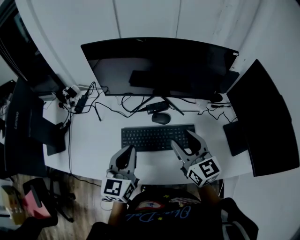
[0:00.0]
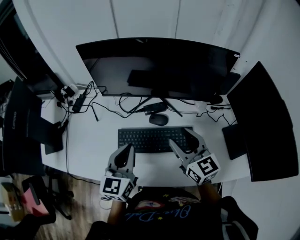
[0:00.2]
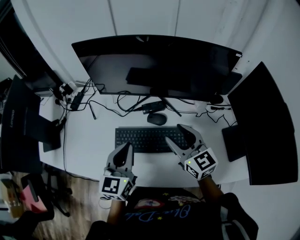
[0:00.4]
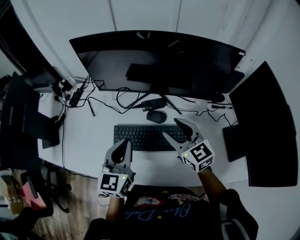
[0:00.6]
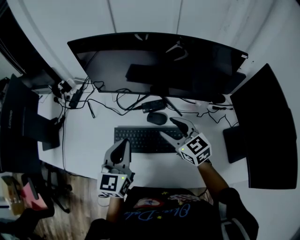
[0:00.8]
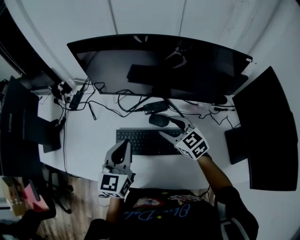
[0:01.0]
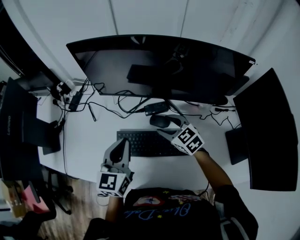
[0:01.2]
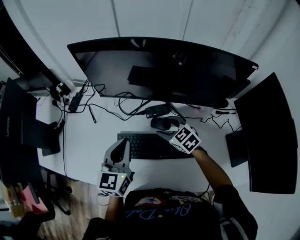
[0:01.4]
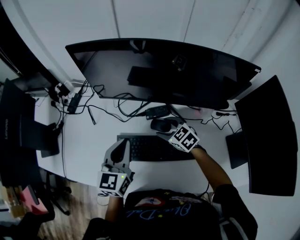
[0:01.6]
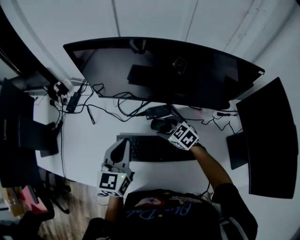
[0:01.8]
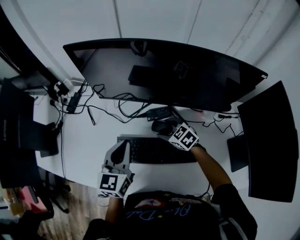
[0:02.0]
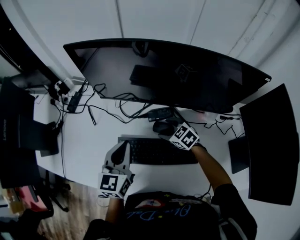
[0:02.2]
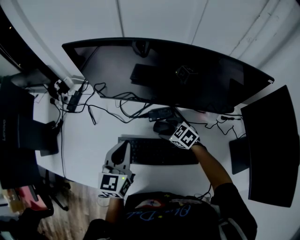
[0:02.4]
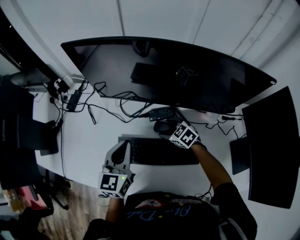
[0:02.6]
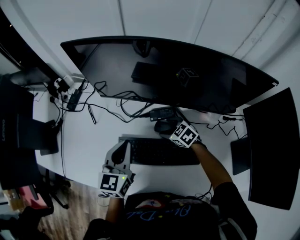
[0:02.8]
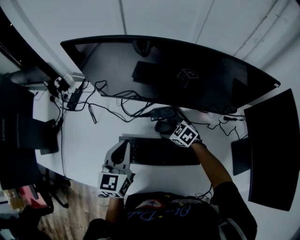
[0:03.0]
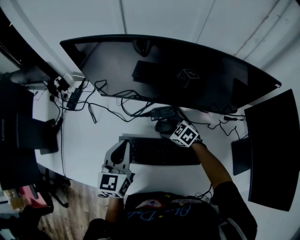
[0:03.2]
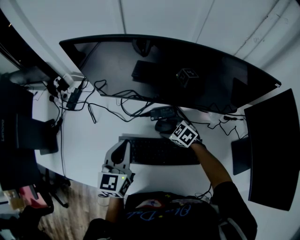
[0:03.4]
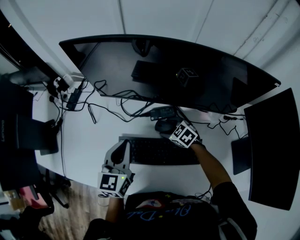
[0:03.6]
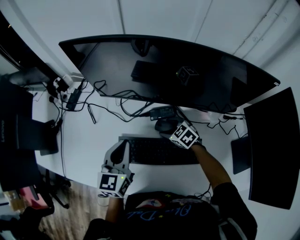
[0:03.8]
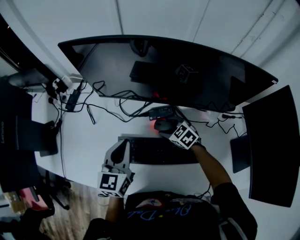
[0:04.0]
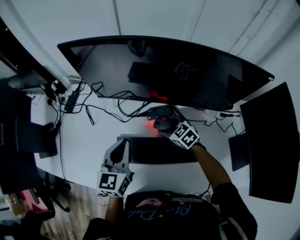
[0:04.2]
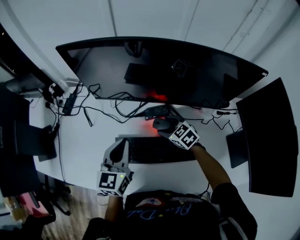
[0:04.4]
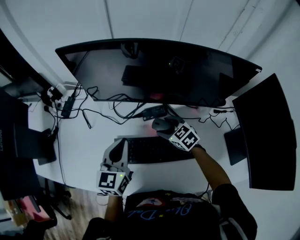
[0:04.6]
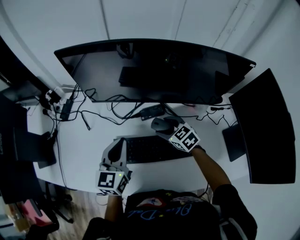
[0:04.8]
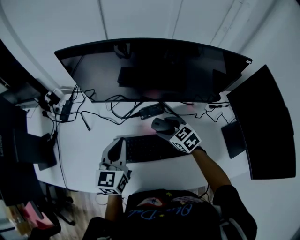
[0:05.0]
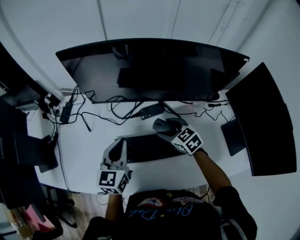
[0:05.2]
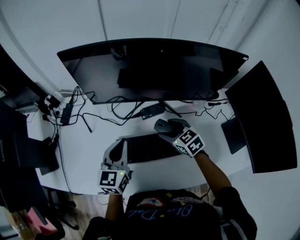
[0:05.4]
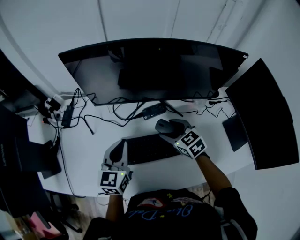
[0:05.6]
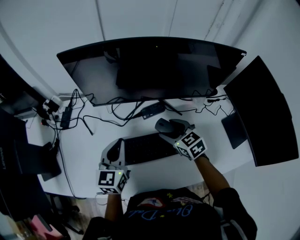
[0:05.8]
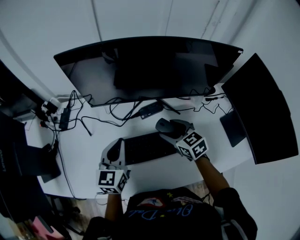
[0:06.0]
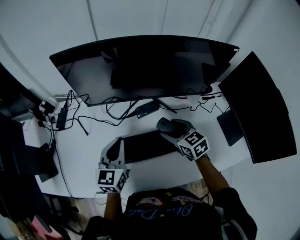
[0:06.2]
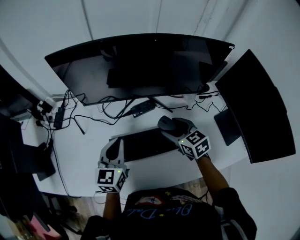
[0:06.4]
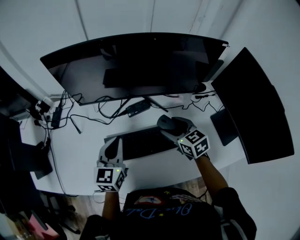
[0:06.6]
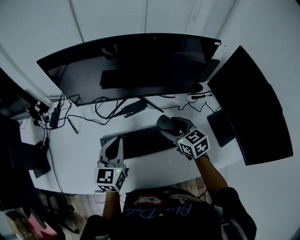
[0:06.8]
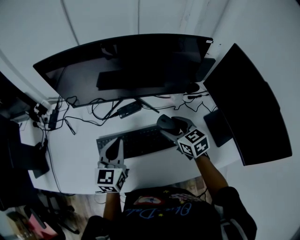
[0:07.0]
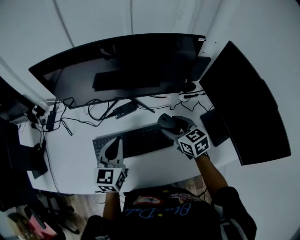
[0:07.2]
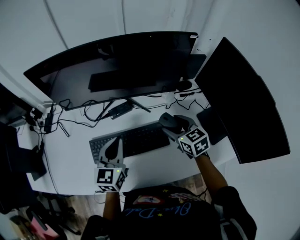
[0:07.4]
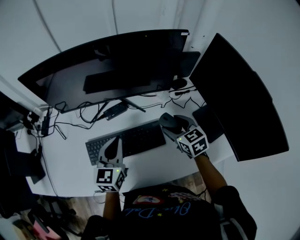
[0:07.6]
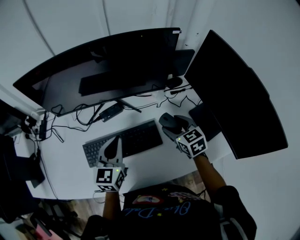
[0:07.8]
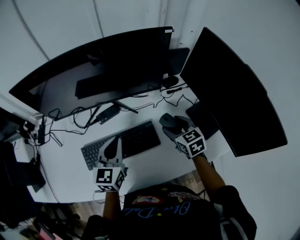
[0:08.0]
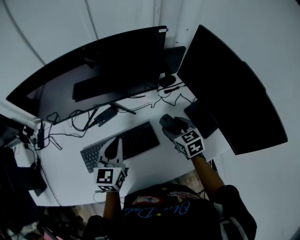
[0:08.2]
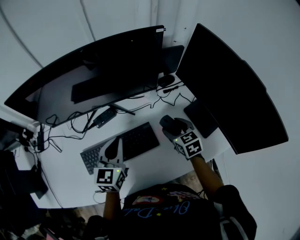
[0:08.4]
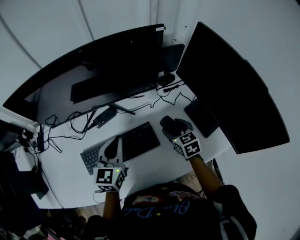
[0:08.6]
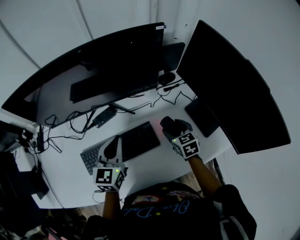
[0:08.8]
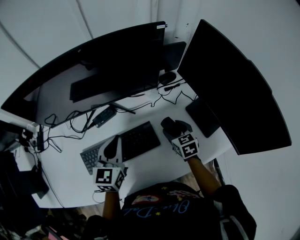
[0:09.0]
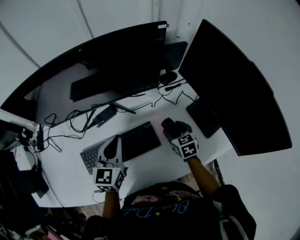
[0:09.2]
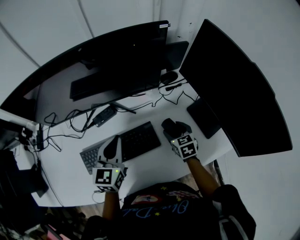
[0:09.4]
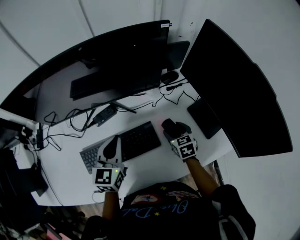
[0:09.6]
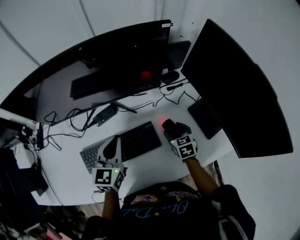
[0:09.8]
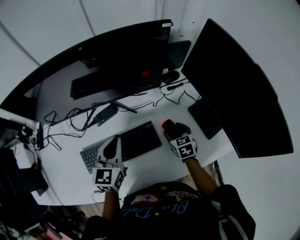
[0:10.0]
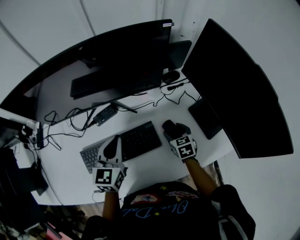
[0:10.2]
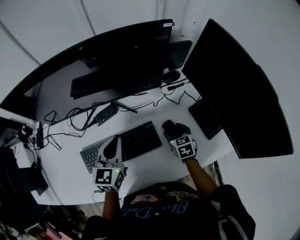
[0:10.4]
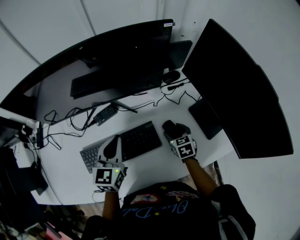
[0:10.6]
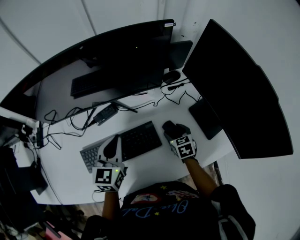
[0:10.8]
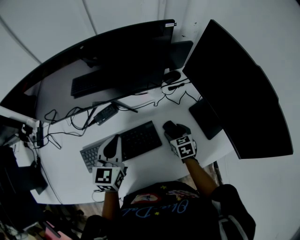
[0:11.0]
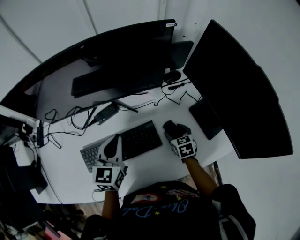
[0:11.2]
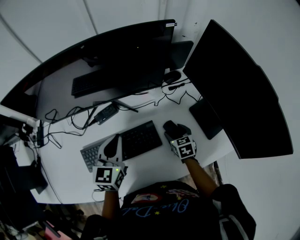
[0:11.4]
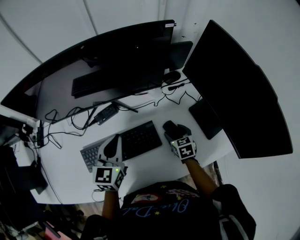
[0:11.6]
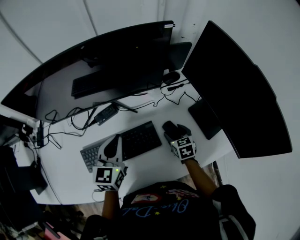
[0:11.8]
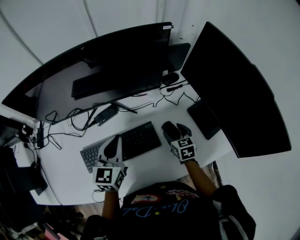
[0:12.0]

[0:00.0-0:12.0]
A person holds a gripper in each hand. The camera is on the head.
0:00.0 to 0:01.6: The left gripper shifts some 10 cm forward. Meanwhile the right gripper goes about 25 cm downward and forward, and points its fingers roughly 30 degrees further downward.
0:01.6 to 0:03.0: The right gripper shifts some 10 cm downward.
0:03.0 to 0:04.4: The right gripper changes place by roughly 5 cm.
0:04.4 to 0:06.0: The right gripper travels upward and backward by roughly 10 cm, and swivels some 20 degrees.
0:06.0 to 0:07.6: Both grippers move to the right, approximately 20 cm.
0:07.6 to 0:09.0: The right gripper shifts about 10 cm downward and to the right. Meanwhile the left gripper moves about 5 cm.
0:09.0 to 0:12.0: The grippers stay close to where they were, moving slightly.

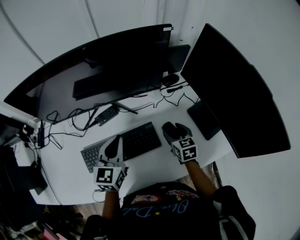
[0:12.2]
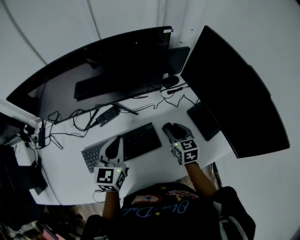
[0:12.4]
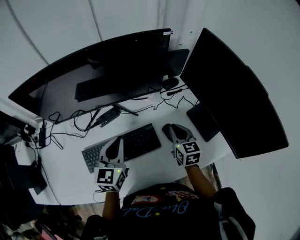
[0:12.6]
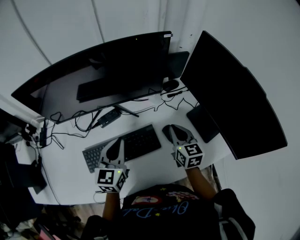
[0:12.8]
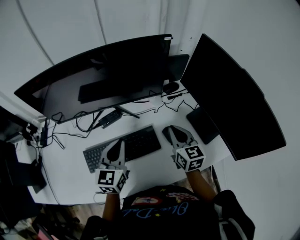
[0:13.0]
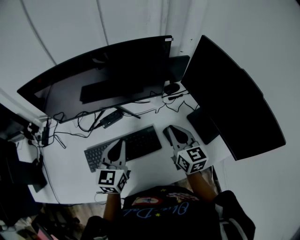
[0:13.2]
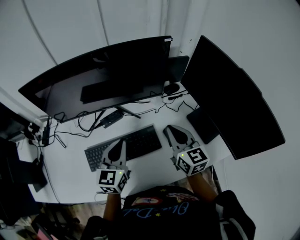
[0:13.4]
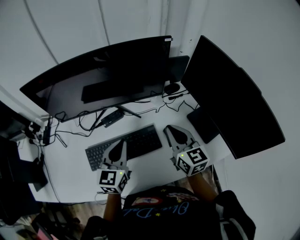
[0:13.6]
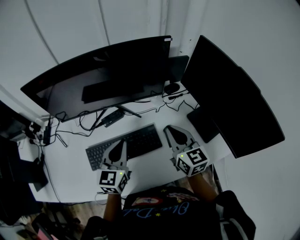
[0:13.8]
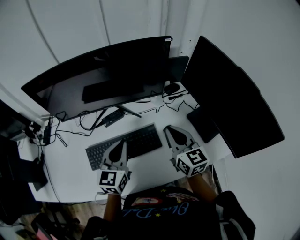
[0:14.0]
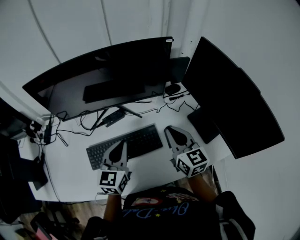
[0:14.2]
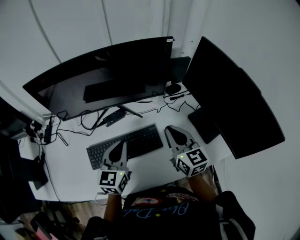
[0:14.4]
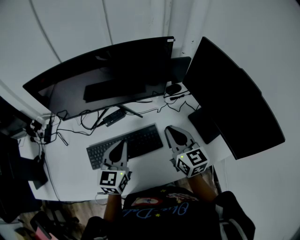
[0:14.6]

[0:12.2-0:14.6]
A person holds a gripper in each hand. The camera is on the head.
0:12.2 to 0:13.4: The right gripper heads upward, covering about 20 cm, turns by approximately 30 degrees, and closes its fingers.
0:13.4 to 0:14.6: The grippers make only small movements.

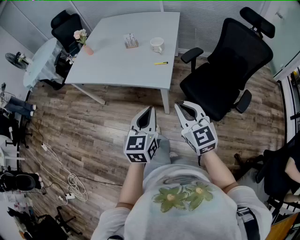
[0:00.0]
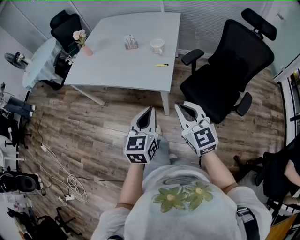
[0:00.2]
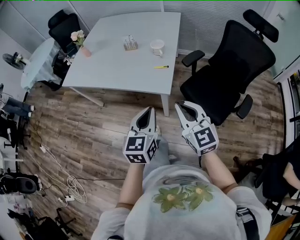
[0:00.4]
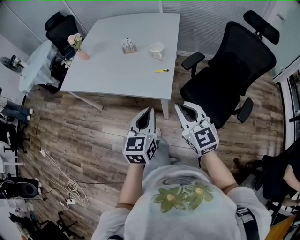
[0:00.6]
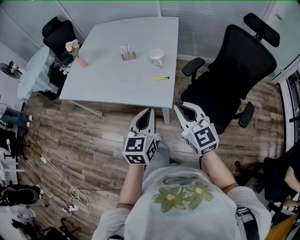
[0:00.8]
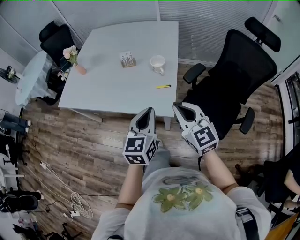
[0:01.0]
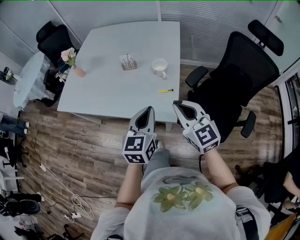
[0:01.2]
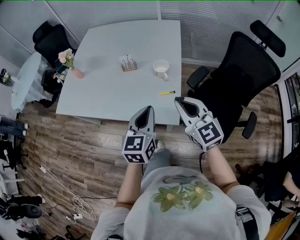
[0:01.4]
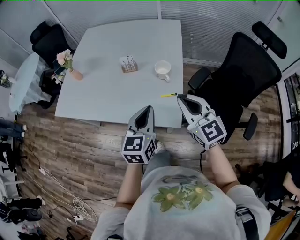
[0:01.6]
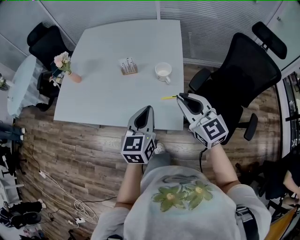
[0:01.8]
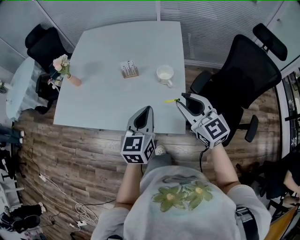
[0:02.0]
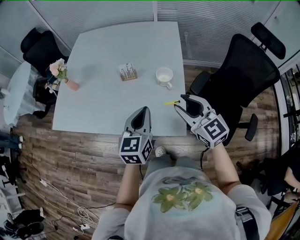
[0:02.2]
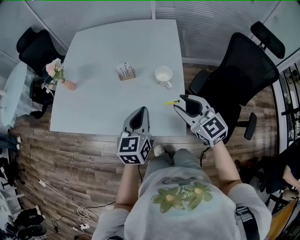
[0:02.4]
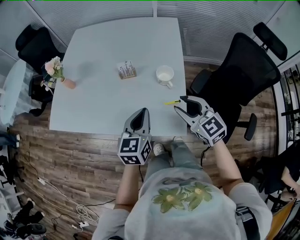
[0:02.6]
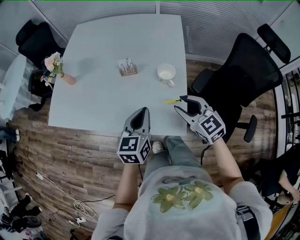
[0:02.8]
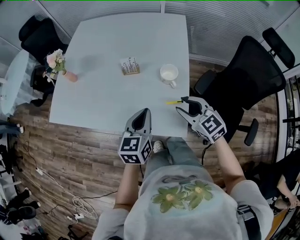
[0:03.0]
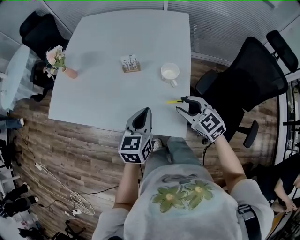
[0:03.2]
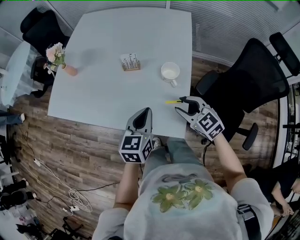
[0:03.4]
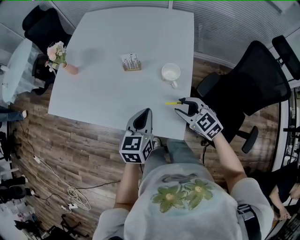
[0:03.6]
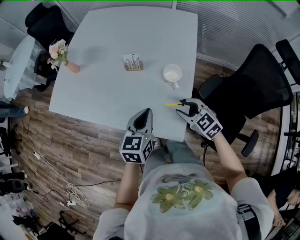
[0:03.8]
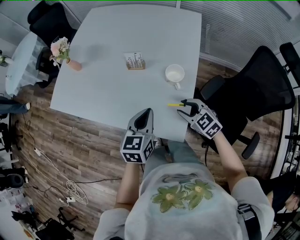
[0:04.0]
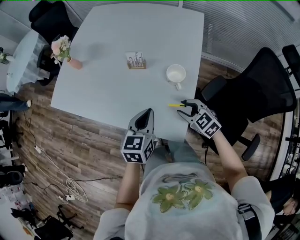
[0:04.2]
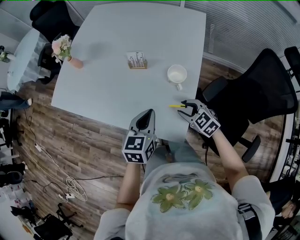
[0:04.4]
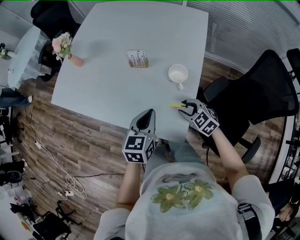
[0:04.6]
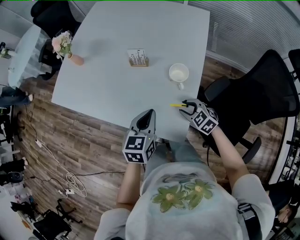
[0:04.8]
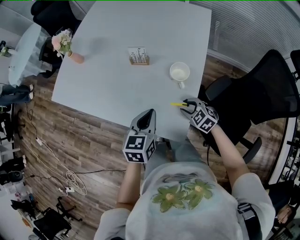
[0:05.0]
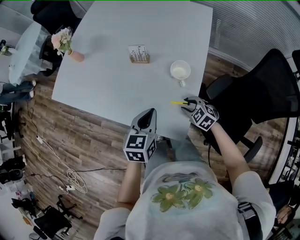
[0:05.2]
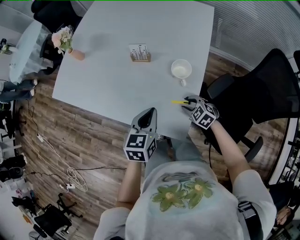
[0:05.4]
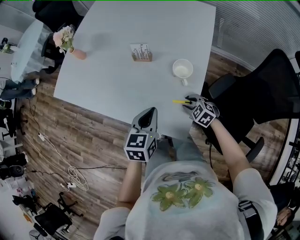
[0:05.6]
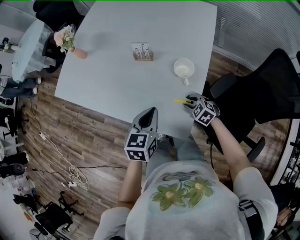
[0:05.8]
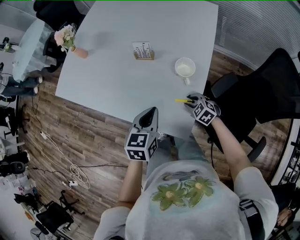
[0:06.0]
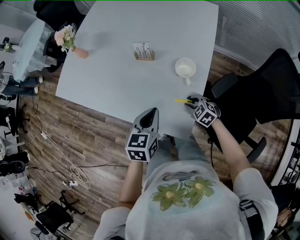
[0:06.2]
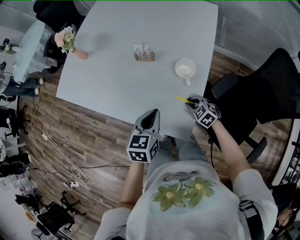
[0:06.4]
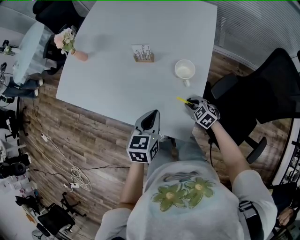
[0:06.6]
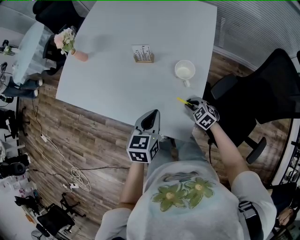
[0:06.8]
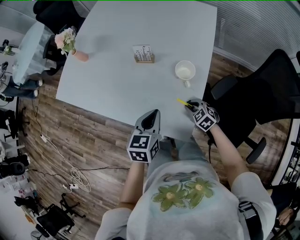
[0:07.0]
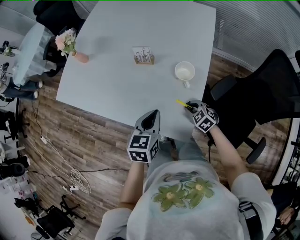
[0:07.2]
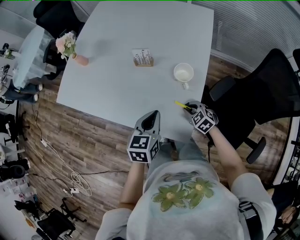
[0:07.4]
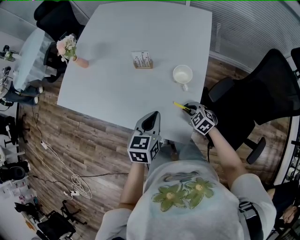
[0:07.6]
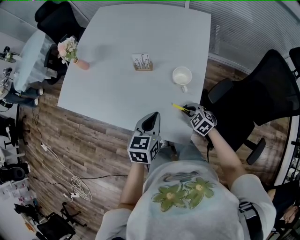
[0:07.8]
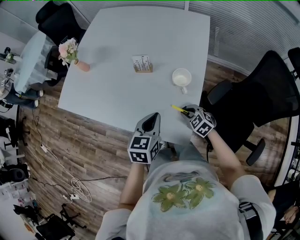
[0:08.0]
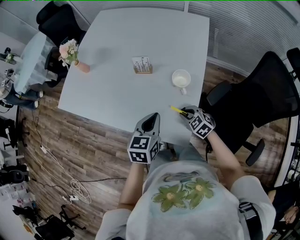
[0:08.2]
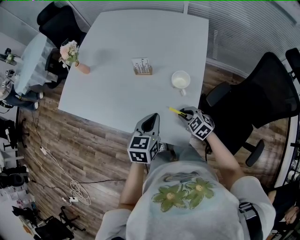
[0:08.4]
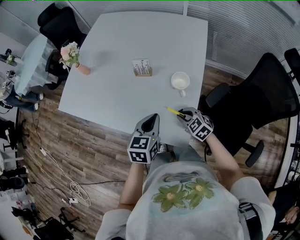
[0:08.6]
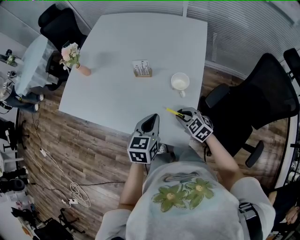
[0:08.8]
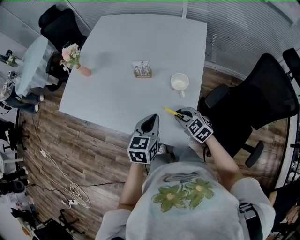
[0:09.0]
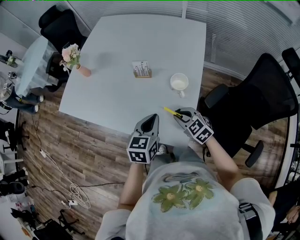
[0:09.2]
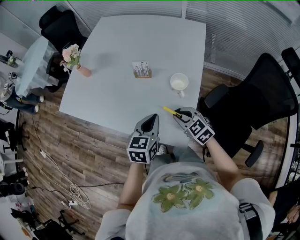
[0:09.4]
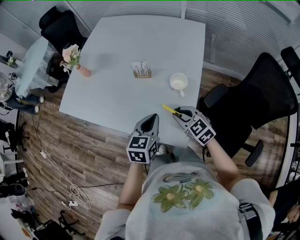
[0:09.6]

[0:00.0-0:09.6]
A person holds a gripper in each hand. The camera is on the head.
0:00.0 to 0:01.6: The grippers both shift forward by roughly 30 cm.
0:01.6 to 0:03.2: The right gripper travels downward and forward by some 15 cm, changes its angle by roughly 30 degrees, and opens. Meanwhile the left gripper goes roughly 10 cm forward and downward.
0:03.2 to 0:04.8: The right gripper heads downward, covering roughly 15 cm, and rotates about 20 degrees, while the left gripper ends up approximately 5 cm from where it was.
0:04.8 to 0:06.4: The right gripper heads downward, covering approximately 5 cm.
0:06.4 to 0:08.0: The right gripper changes place by some 5 cm.
0:08.0 to 0:09.6: The right gripper goes about 15 cm upward.
